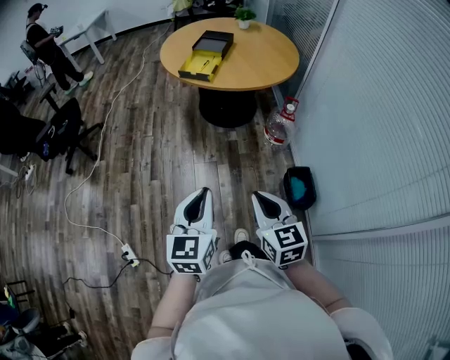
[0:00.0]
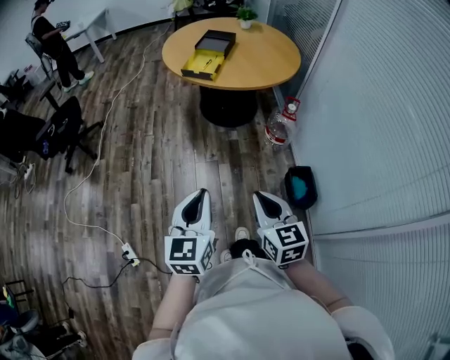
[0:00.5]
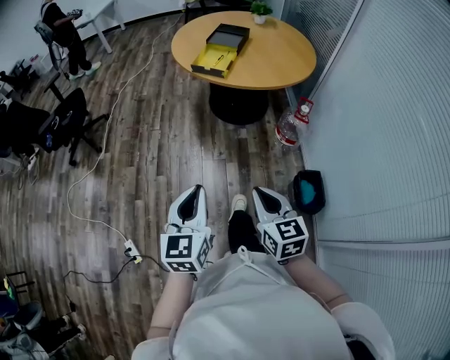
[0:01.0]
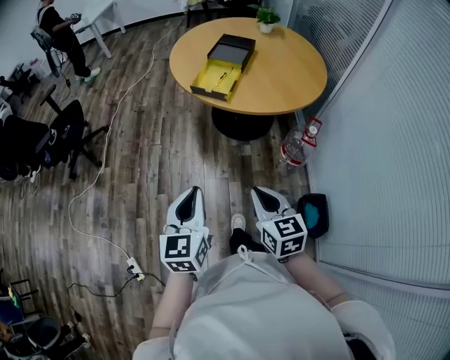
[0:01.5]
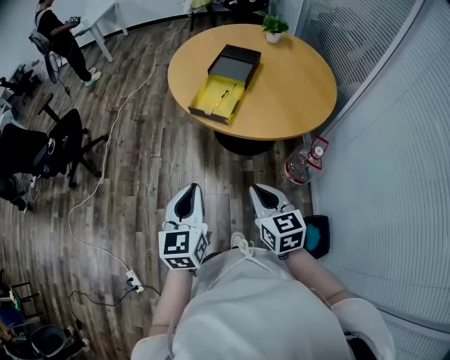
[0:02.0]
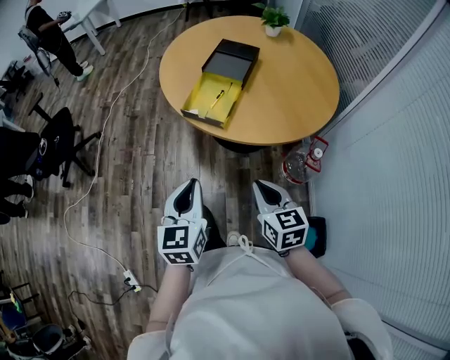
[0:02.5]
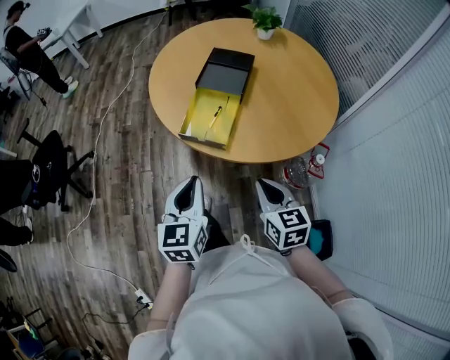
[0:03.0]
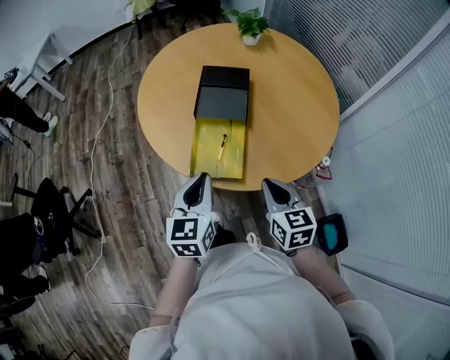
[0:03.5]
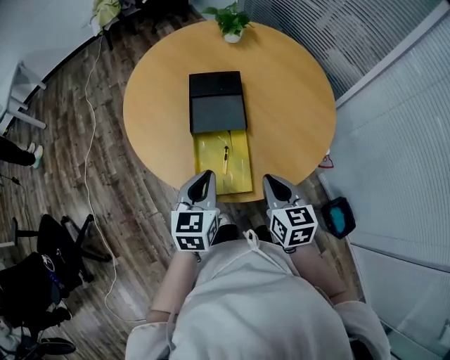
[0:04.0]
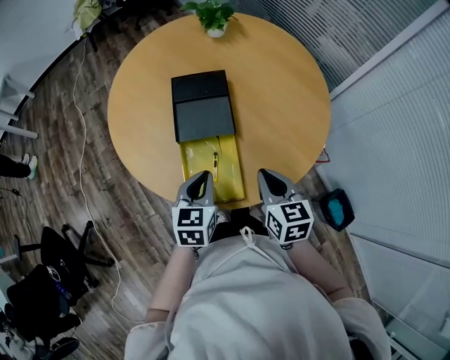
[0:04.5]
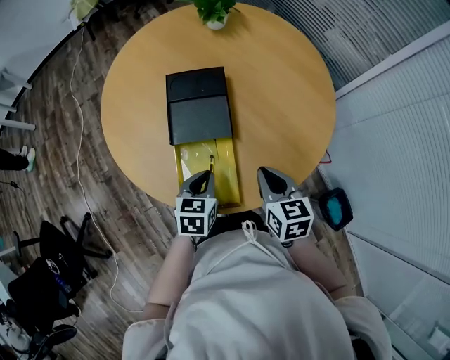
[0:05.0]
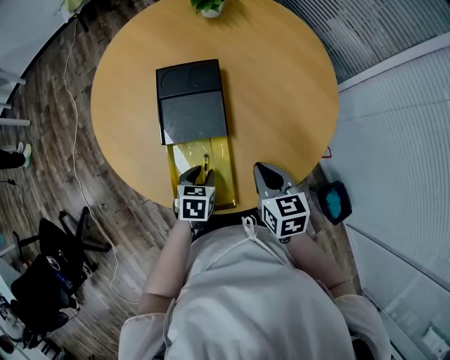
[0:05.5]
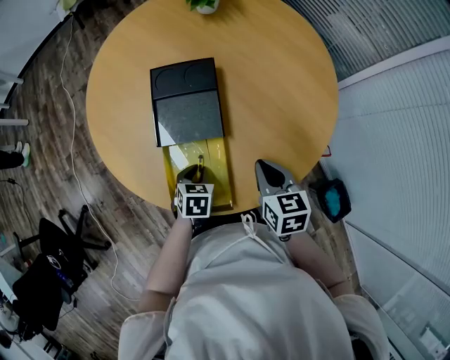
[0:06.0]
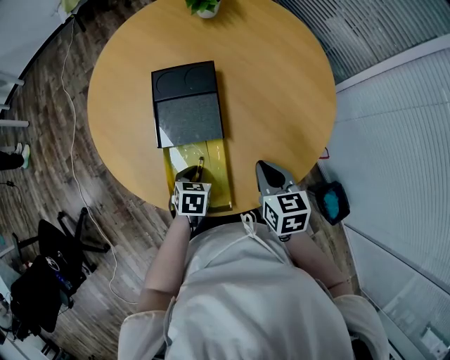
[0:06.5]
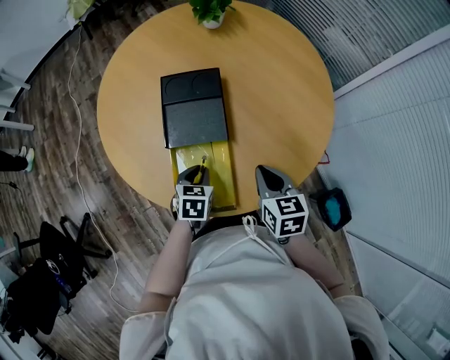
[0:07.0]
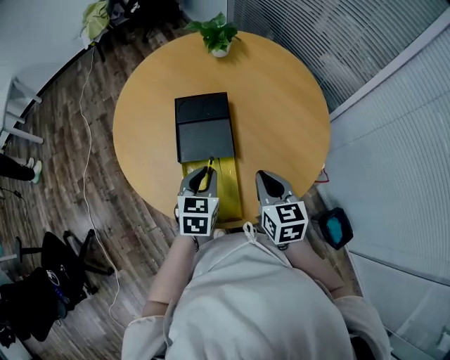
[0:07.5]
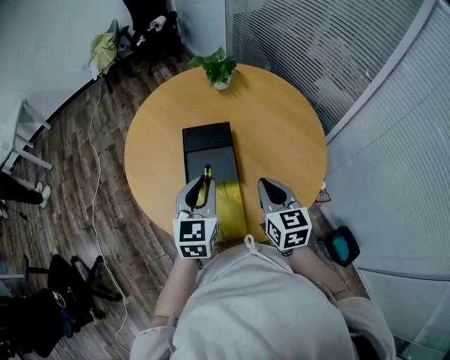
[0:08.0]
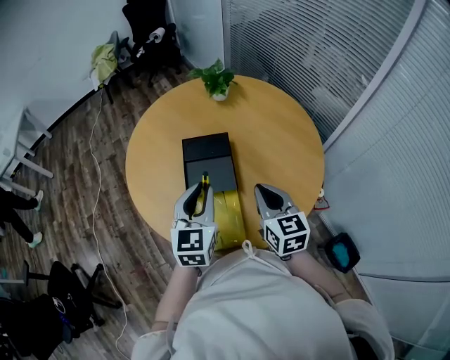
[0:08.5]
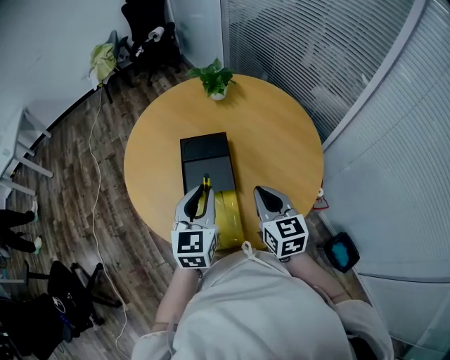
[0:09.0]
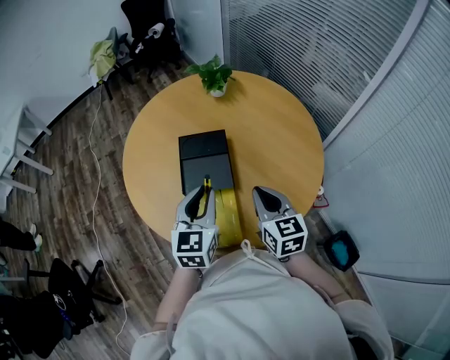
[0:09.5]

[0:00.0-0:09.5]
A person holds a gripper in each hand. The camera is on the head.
0:00.0 to 0:02.0: The grippers both shift forward by roughly 40 cm.
0:02.0 to 0:04.0: The left gripper changes place by approximately 50 cm, and swivels roughly 40 degrees; the right gripper moves roughly 40 cm, and turns by some 30 degrees.
0:04.0 to 0:05.5: The right gripper is displaced forward and downward by some 15 cm; the left gripper travels downward and forward by about 20 cm, angles its fingers downward, by approximately 30 degrees, and opens its fingers.
0:05.5 to 0:07.5: The left gripper is displaced upward by approximately 15 cm, and swivels roughly 20 degrees; the right gripper shifts approximately 10 cm upward.
0:07.5 to 0:09.5: The left gripper shifts about 15 cm upward, and rotates approximately 20 degrees. The right gripper goes about 5 cm upward.

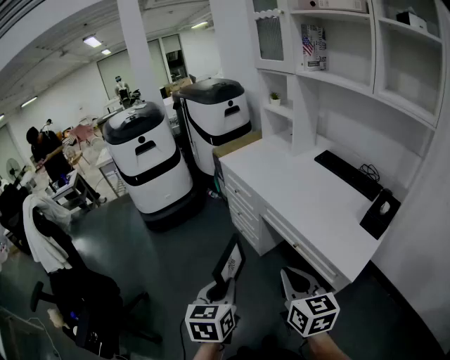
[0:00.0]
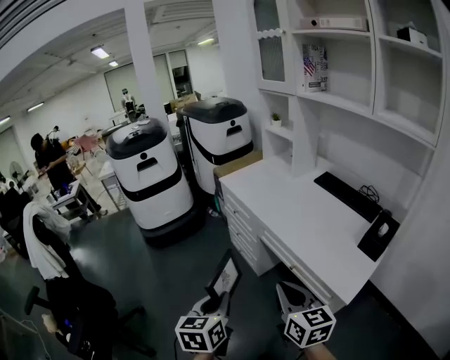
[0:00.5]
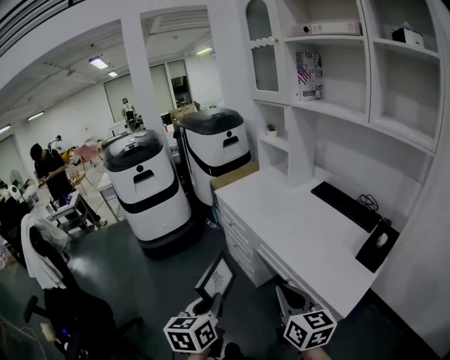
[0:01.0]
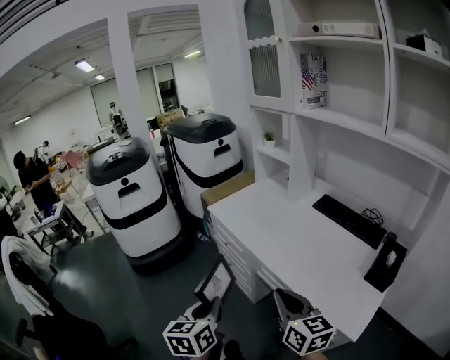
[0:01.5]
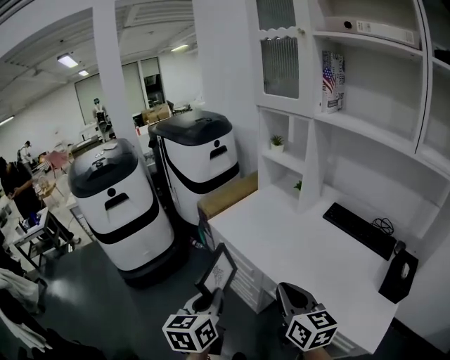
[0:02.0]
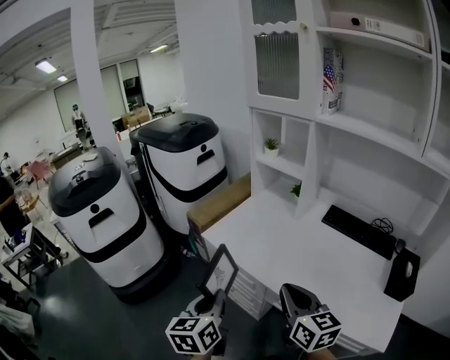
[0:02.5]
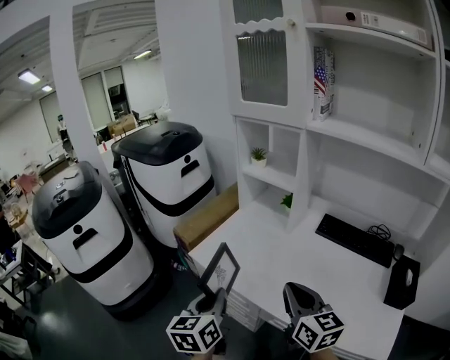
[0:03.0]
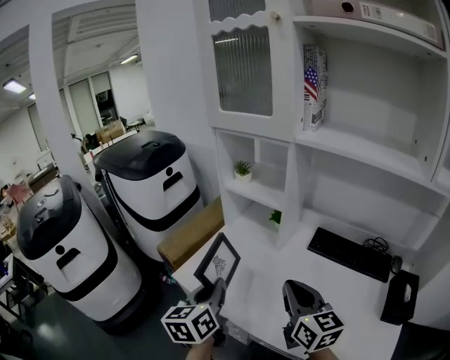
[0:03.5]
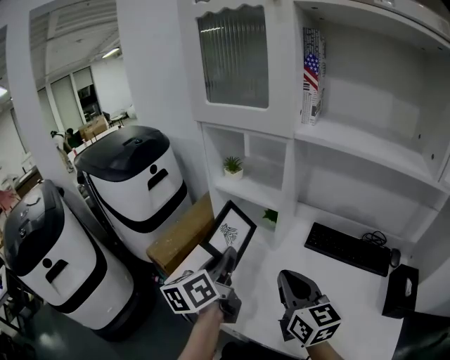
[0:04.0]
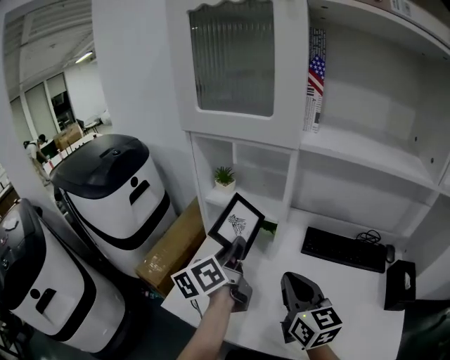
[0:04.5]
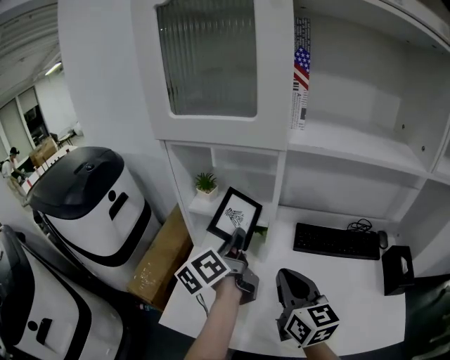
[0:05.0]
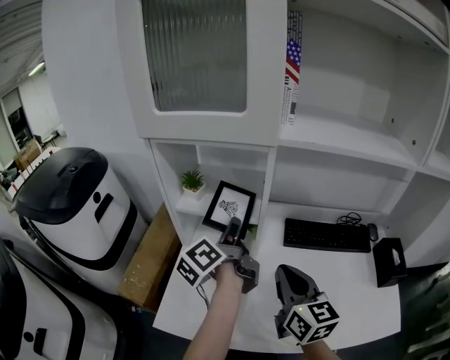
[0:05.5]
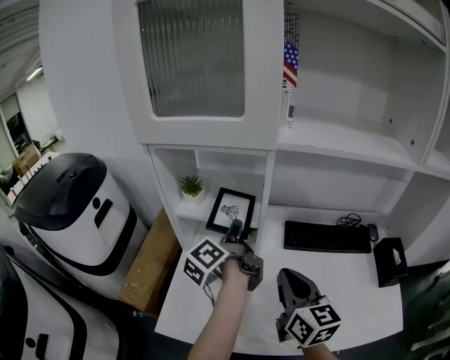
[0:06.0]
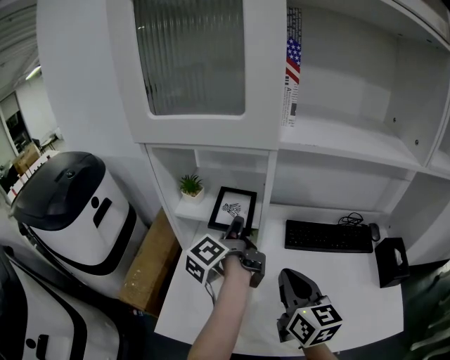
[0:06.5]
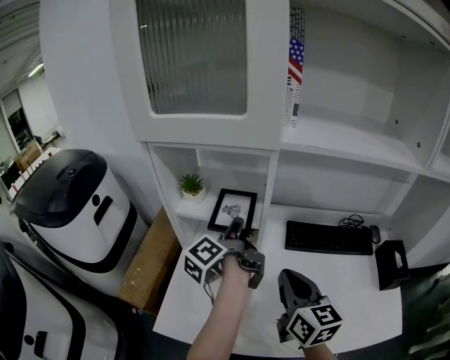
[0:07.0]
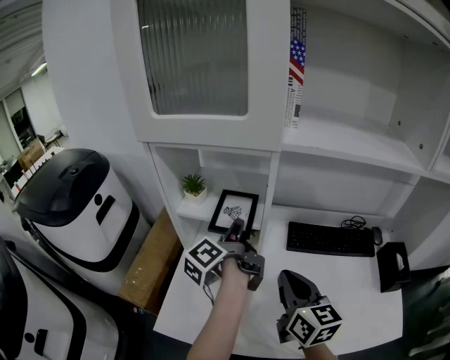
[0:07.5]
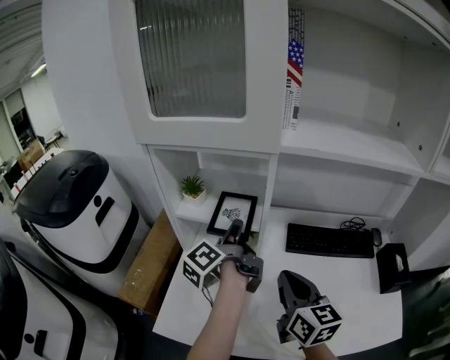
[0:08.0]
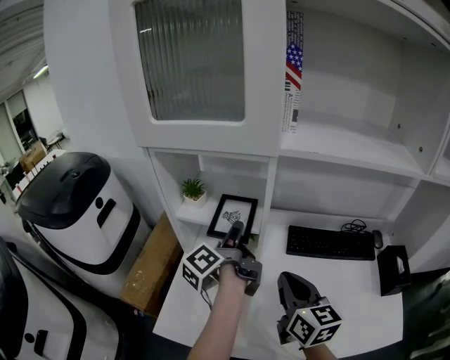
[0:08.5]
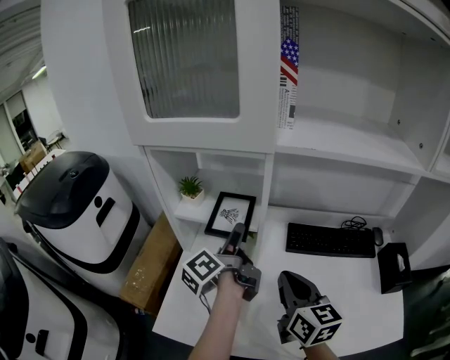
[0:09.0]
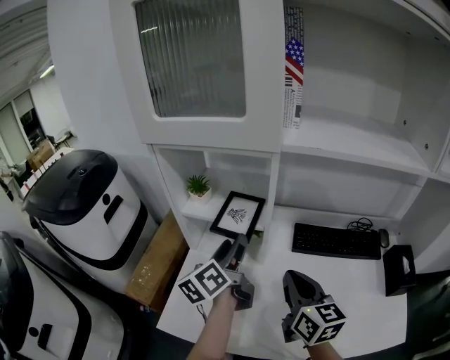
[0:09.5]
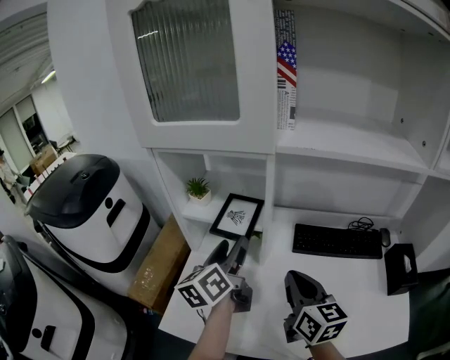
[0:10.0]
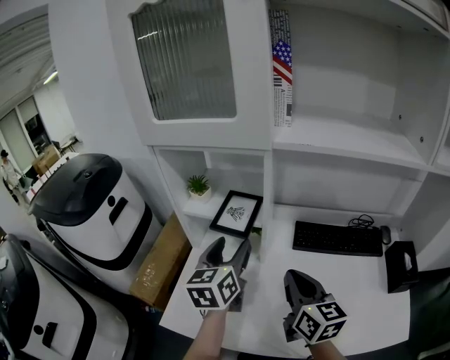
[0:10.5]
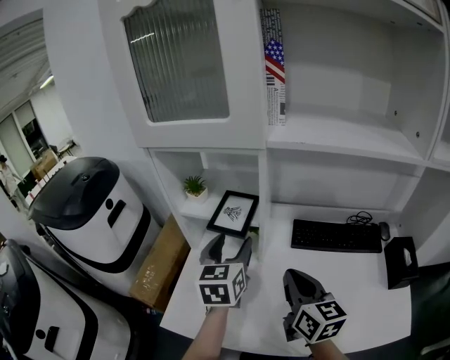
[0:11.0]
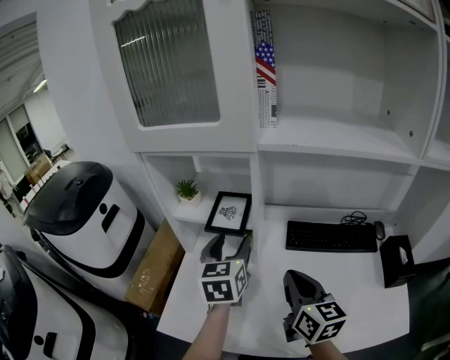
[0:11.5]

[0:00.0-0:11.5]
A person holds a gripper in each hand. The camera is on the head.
0:00.0 to 0:02.0: The two grippers go some 35 cm forward.
0:02.0 to 0:04.0: The grippers both shift forward by approximately 35 cm. The left gripper rotates approximately 30 degrees.
0:04.0 to 0:06.0: The left gripper is displaced forward by about 20 cm, and changes its angle by roughly 40 degrees; the right gripper goes about 5 cm forward, and turns by roughly 30 degrees.
0:06.0 to 0:07.5: The grippers move only a little.
0:07.5 to 0:09.5: The left gripper turns by some 30 degrees, and opens its fingers.
0:09.5 to 0:11.5: The left gripper rotates around the line of its fingers by approximately 40 degrees, clockwise from behind.

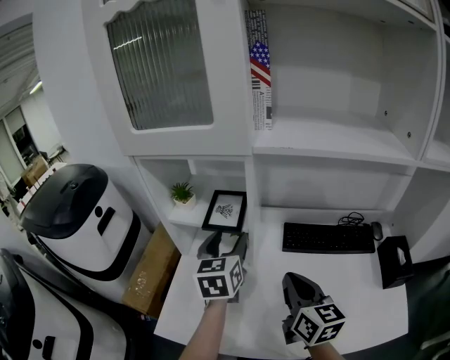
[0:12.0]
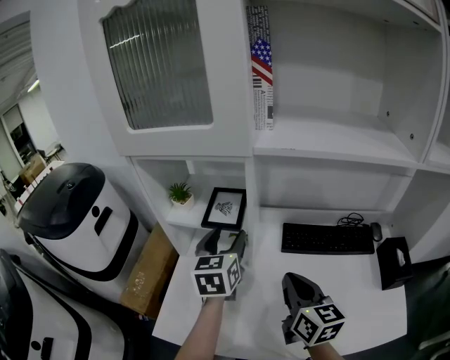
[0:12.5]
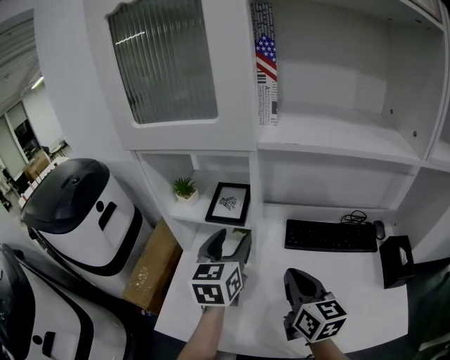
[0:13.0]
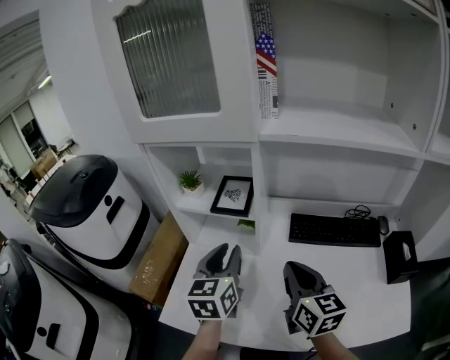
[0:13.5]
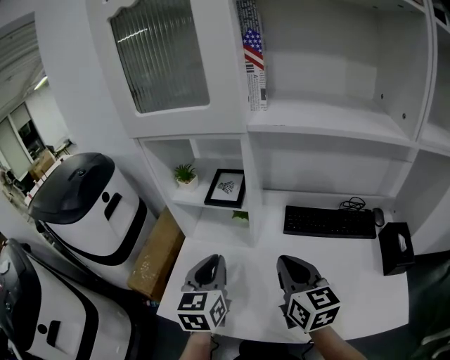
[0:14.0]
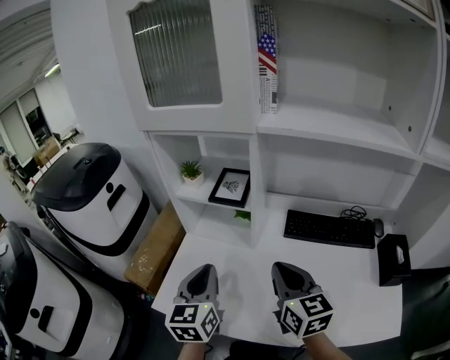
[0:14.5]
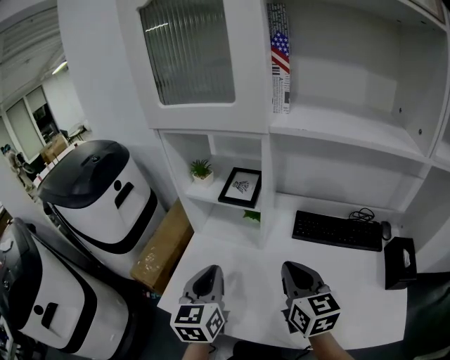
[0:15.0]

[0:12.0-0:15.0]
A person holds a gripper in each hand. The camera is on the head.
0:12.0 to 0:13.5: The left gripper goes roughly 5 cm backward, and closes.
0:13.5 to 0:15.0: The left gripper is displaced backward and to the left by some 10 cm.

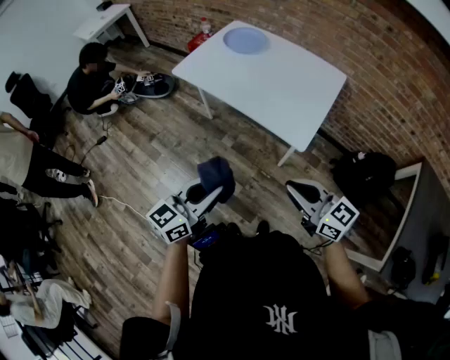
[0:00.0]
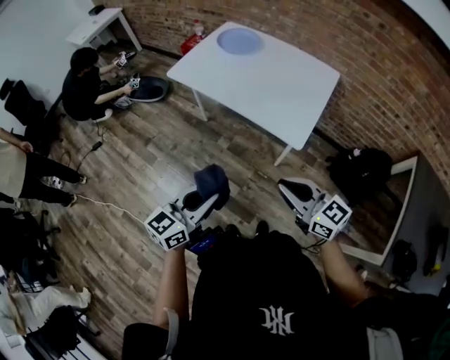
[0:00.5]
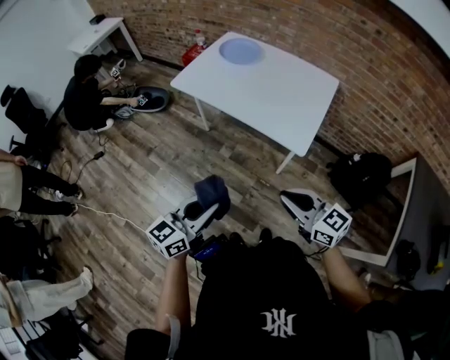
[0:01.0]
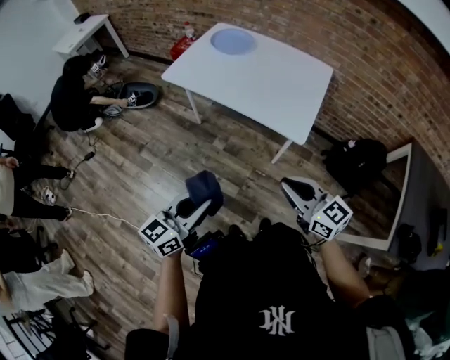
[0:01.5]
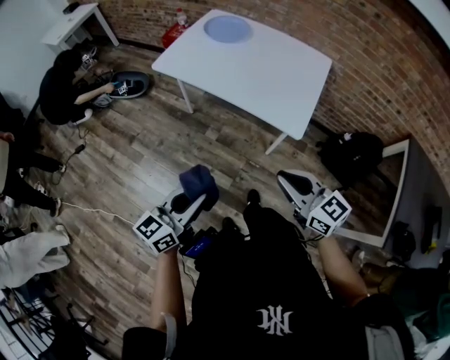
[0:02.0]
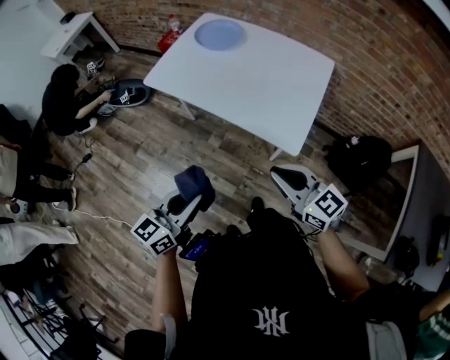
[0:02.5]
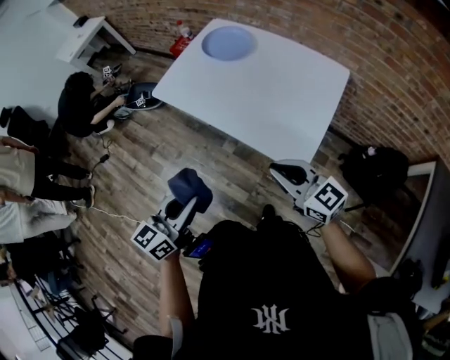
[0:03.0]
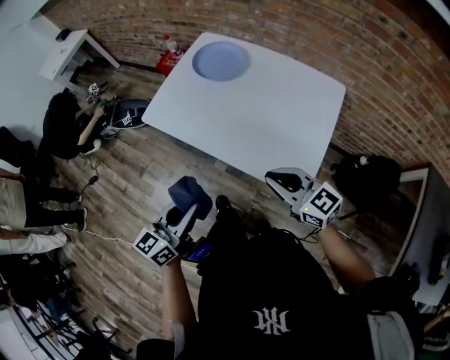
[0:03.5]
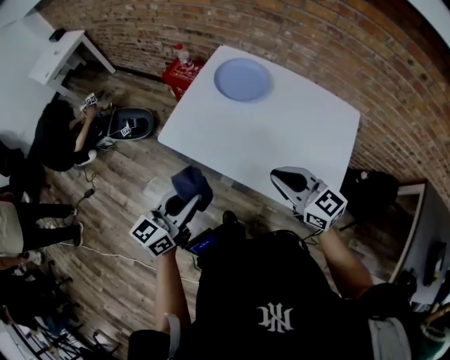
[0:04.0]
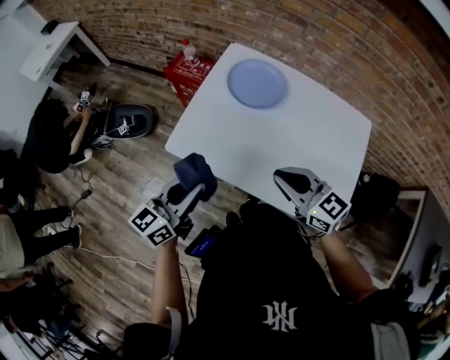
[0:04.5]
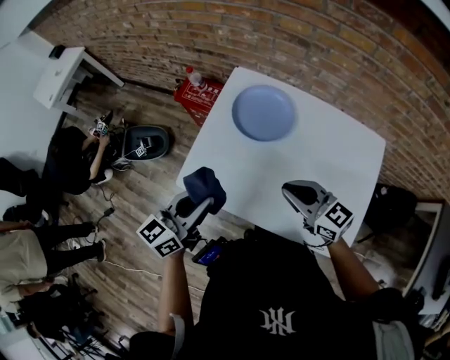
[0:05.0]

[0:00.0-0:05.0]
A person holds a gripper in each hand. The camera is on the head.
0:00.0 to 0:02.5: The grippers both shift forward by roughly 10 cm.
0:02.5 to 0:05.0: The two grippers travel together, forward, approximately 50 cm.
